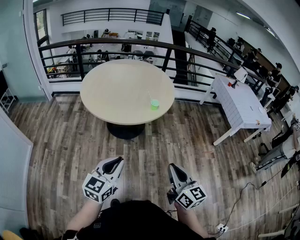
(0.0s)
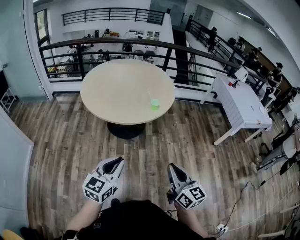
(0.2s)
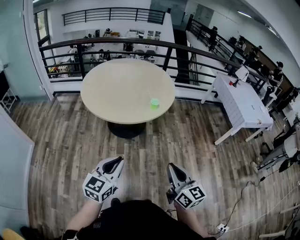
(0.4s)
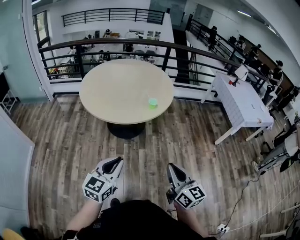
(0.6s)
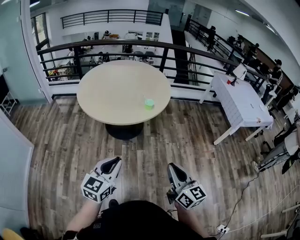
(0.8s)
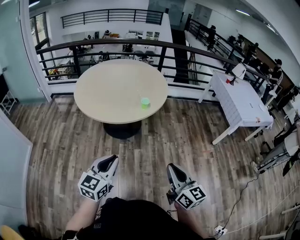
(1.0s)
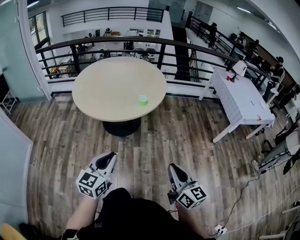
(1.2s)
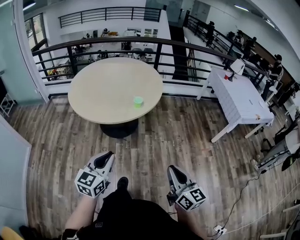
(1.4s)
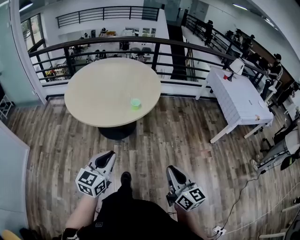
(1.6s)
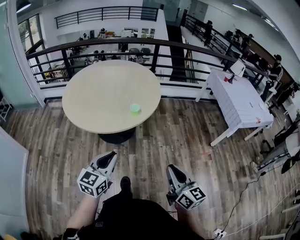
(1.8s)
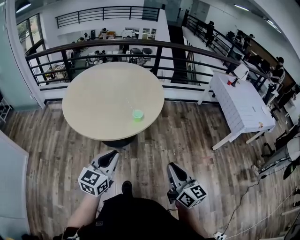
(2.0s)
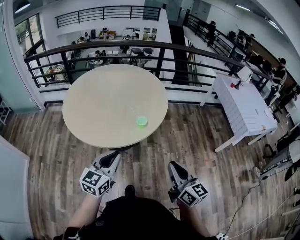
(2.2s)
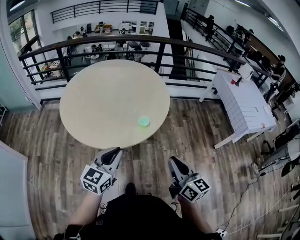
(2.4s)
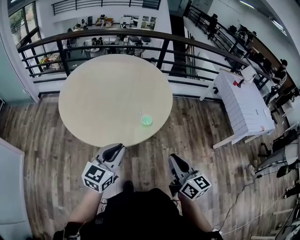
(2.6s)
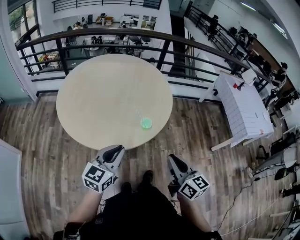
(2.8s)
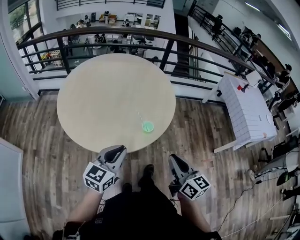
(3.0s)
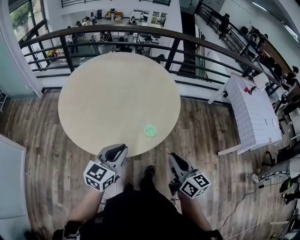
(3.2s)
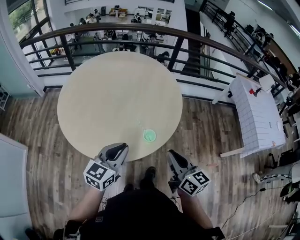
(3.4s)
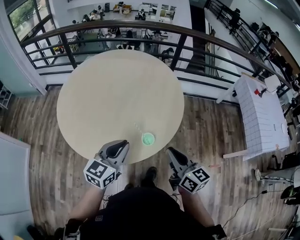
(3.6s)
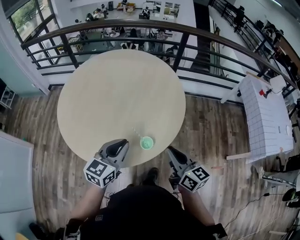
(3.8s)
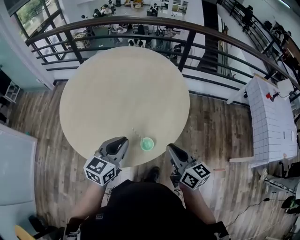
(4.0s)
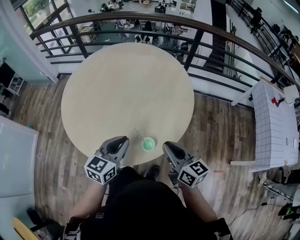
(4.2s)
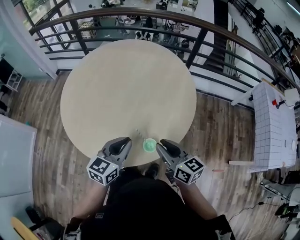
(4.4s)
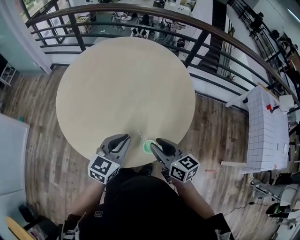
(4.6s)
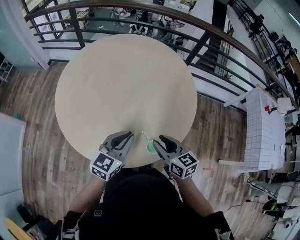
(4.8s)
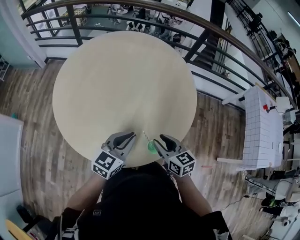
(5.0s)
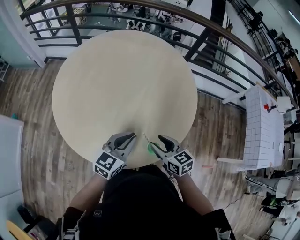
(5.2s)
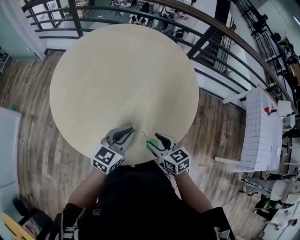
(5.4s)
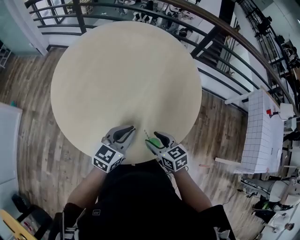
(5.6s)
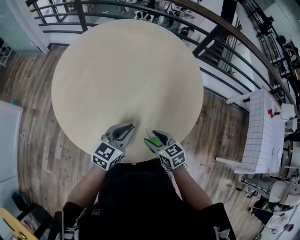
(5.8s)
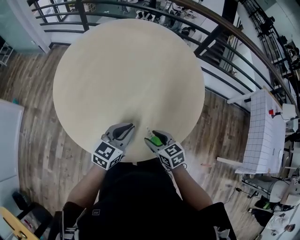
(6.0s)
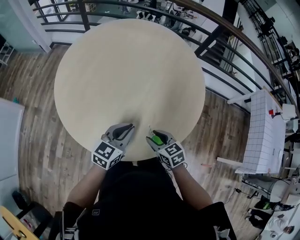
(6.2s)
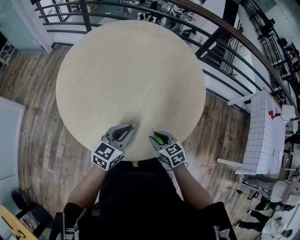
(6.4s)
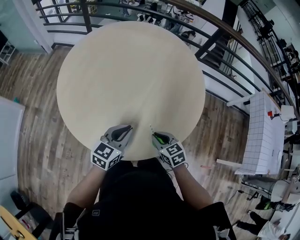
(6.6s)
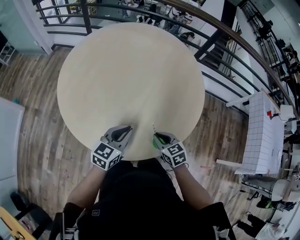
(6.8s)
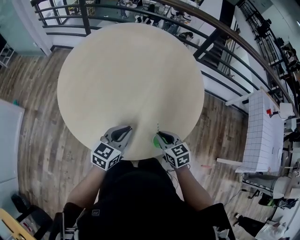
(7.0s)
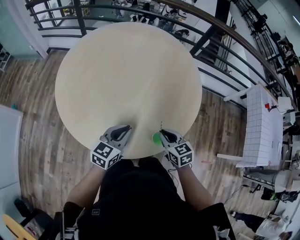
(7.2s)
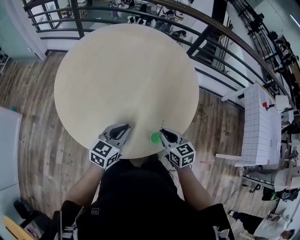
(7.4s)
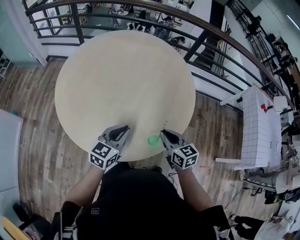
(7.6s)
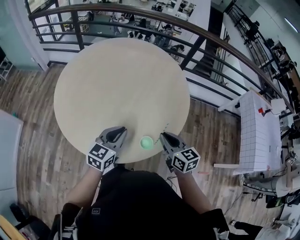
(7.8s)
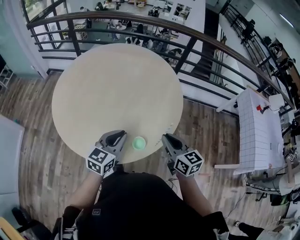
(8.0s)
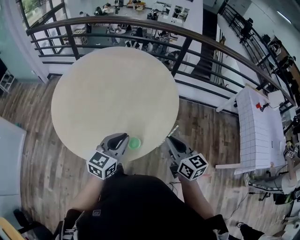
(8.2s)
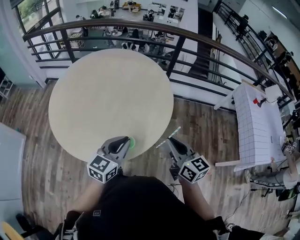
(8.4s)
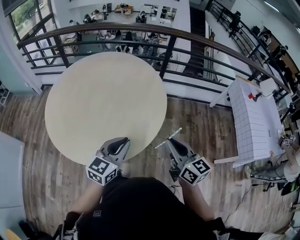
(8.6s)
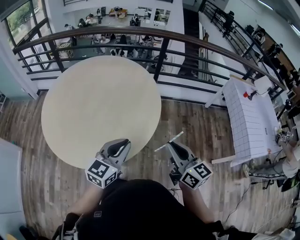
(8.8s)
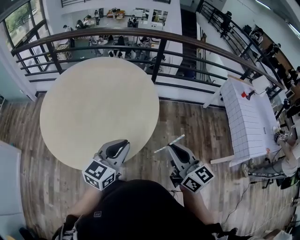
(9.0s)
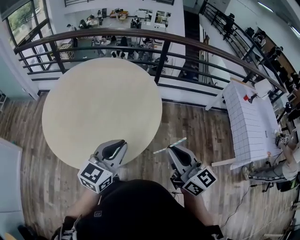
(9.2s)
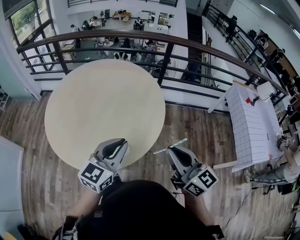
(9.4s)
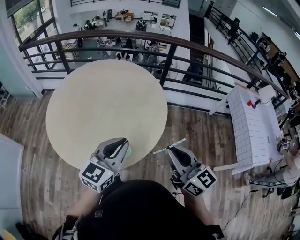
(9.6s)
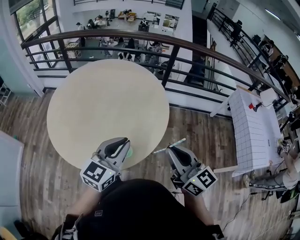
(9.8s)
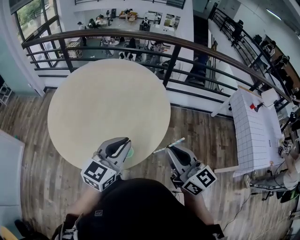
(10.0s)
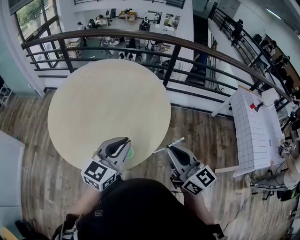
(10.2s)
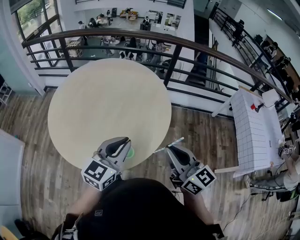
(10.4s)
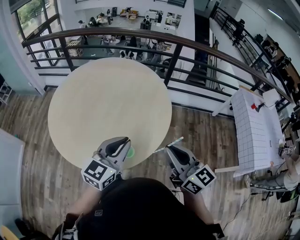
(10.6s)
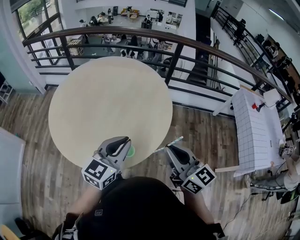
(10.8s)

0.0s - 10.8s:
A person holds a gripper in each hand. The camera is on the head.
0.0s - 1.6s: The left gripper travels to the right and forward by approximately 15 cm; the right gripper travels to the right by some 15 cm.
1.6s - 3.0s: The two grippers go some 25 cm forward.
3.0s - 4.6s: Both grippers travel together forward, about 20 cm. The right gripper rotates roughly 30 degrees, and opens.
4.6s - 6.2s: The right gripper goes about 15 cm downward, and changes its angle by about 30 degrees; the left gripper is displaced downward by some 10 cm.
6.2s - 7.8s: The right gripper shifts approximately 15 cm upward and to the right, rotates about 30 degrees, and closes; the left gripper shifts by roughly 5 cm.
7.8s - 9.2s: The right gripper goes about 25 cm upward, to the right and backward, and rotates some 20 degrees; the left gripper heads to the right and upward, covering about 20 cm.
9.2s - 10.8s: The right gripper moves approximately 5 cm.

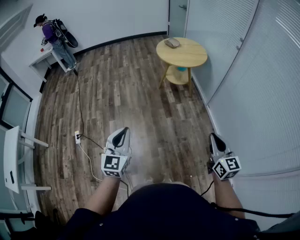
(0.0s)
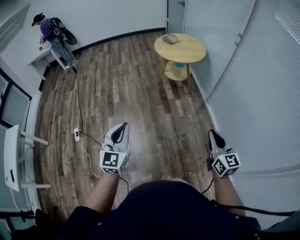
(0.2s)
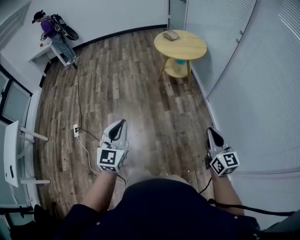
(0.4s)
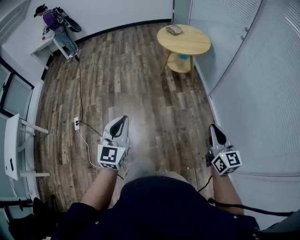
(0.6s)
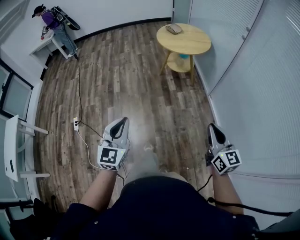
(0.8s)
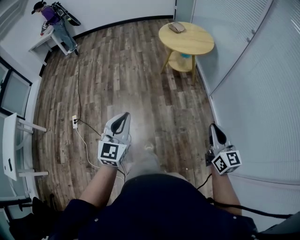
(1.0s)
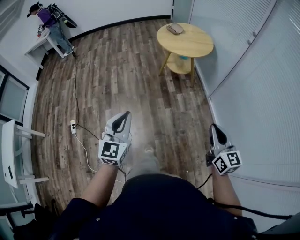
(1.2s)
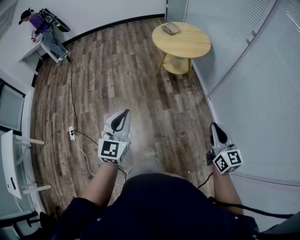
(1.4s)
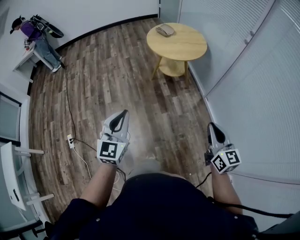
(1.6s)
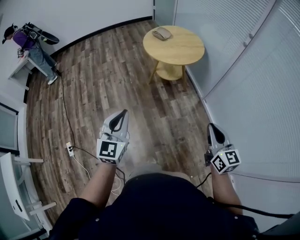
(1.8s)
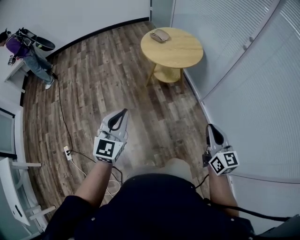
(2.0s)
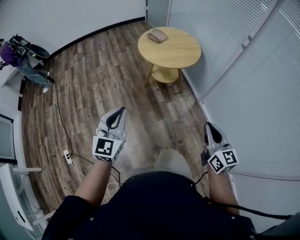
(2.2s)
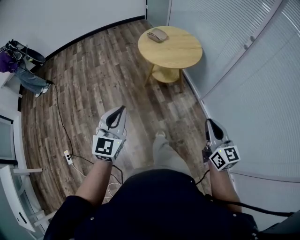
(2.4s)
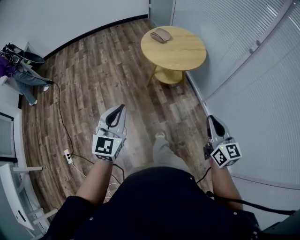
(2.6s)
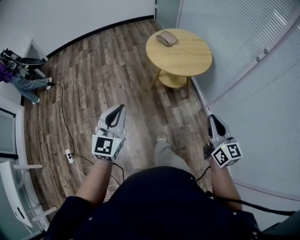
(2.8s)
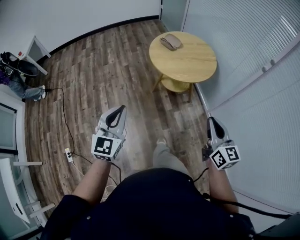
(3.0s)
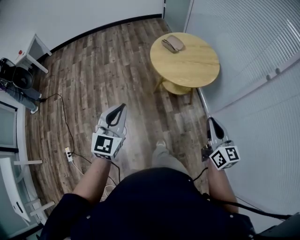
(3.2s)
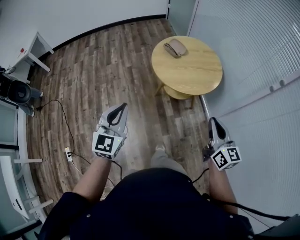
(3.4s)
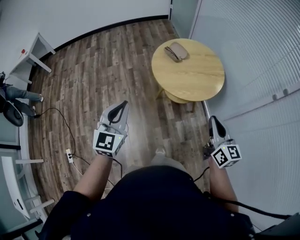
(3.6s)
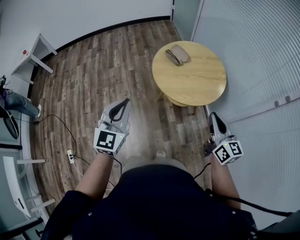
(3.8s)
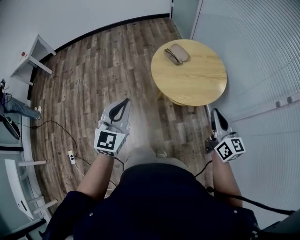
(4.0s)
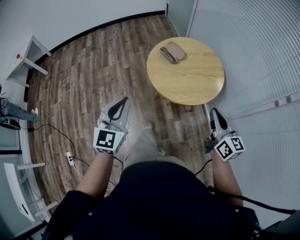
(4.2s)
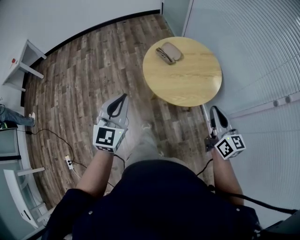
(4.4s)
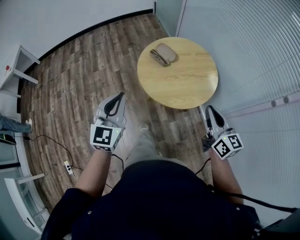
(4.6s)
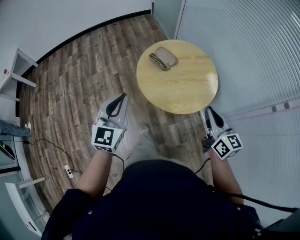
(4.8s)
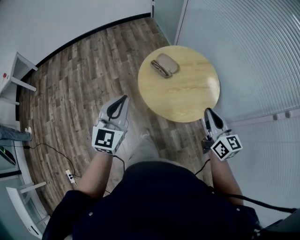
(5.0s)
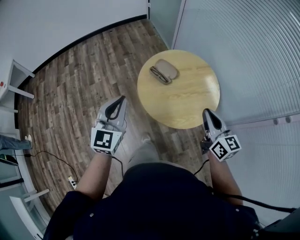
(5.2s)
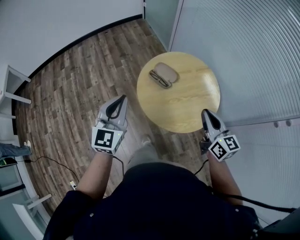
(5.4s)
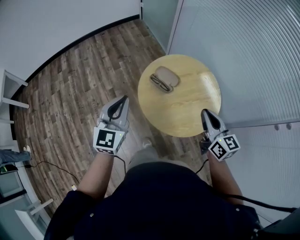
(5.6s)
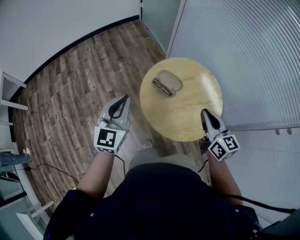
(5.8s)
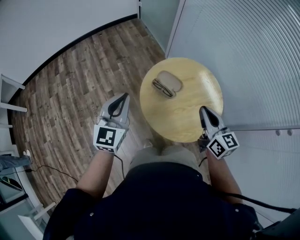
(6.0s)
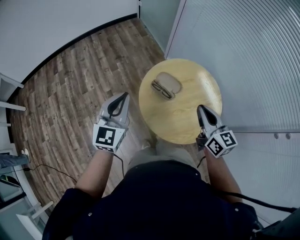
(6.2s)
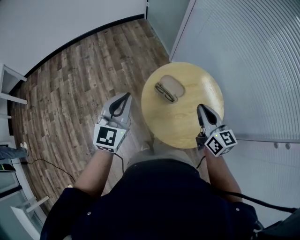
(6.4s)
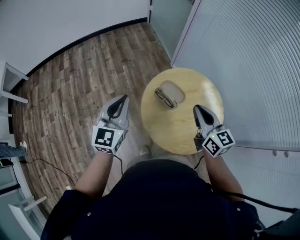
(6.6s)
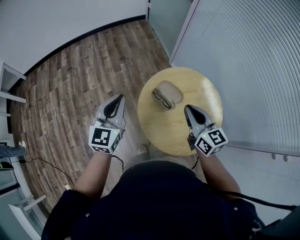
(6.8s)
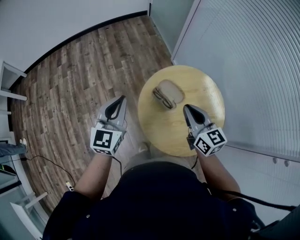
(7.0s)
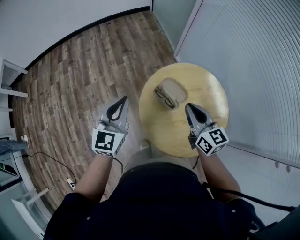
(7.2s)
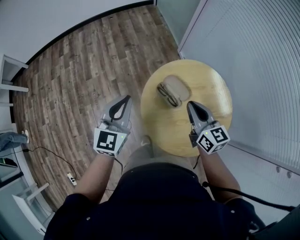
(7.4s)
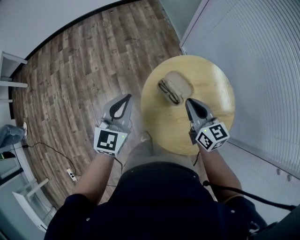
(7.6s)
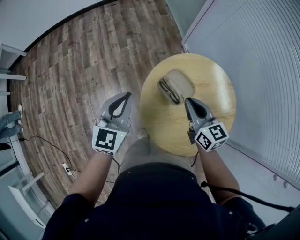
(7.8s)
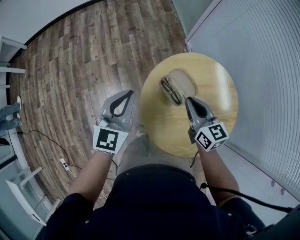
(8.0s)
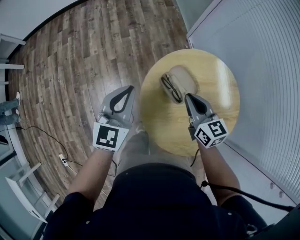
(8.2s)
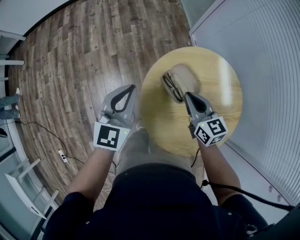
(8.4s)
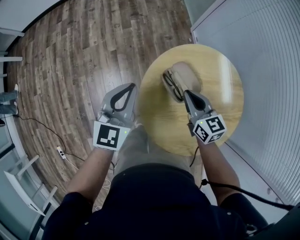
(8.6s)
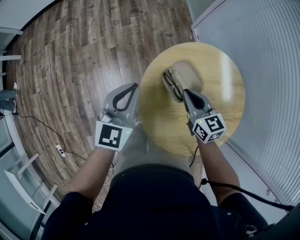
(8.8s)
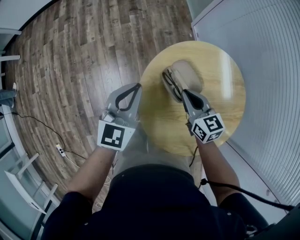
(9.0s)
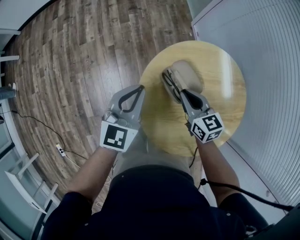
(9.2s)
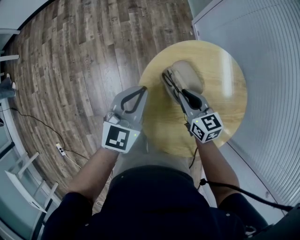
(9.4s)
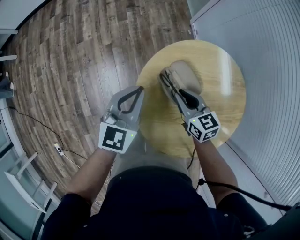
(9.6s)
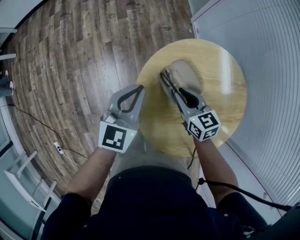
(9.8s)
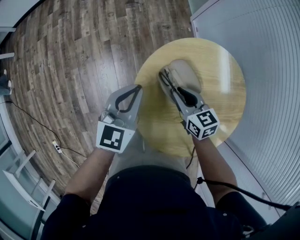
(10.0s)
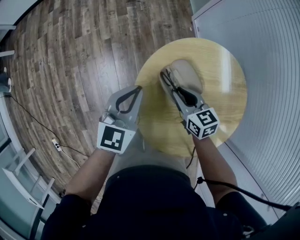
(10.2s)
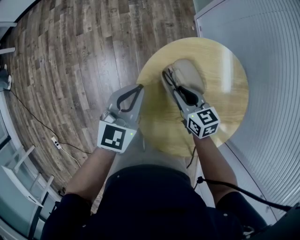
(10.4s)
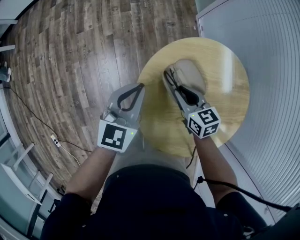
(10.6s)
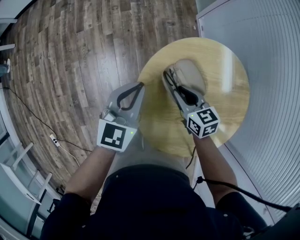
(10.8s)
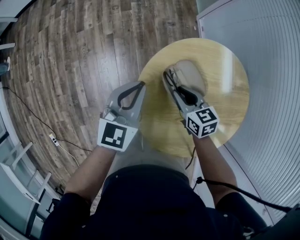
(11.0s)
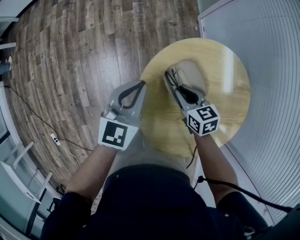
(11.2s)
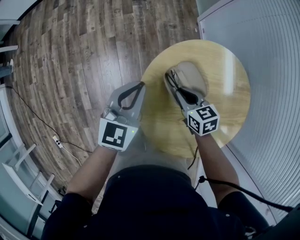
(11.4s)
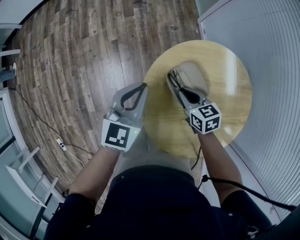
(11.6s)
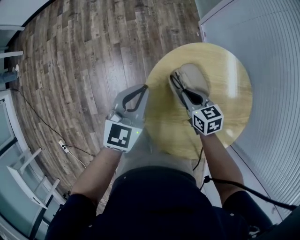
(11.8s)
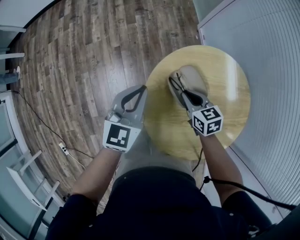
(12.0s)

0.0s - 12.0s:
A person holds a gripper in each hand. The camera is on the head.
0.0s - 1.6s: Both grippers move forward, approximately 25 cm.
1.6s - 3.0s: The grippers both shift forward by roughly 25 cm.
3.0s - 4.4s: The grippers both shift forward by some 30 cm.
4.4s - 6.0s: The left gripper goes some 30 cm forward, while the right gripper shifts roughly 30 cm forward and to the left.
6.0s - 7.6s: The left gripper heads forward and downward, covering roughly 10 cm, while the right gripper heads forward and downward, covering approximately 20 cm.
7.6s - 9.0s: The left gripper moves downward, roughly 10 cm. The right gripper heads downward and forward, covering roughly 15 cm.
9.0s - 10.4s: The right gripper travels downward by approximately 5 cm.
10.4s - 12.0s: The grippers move only a little.

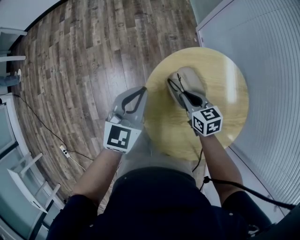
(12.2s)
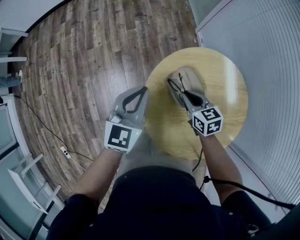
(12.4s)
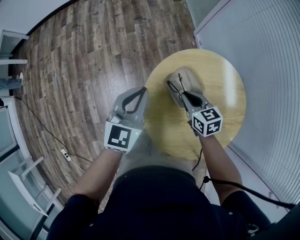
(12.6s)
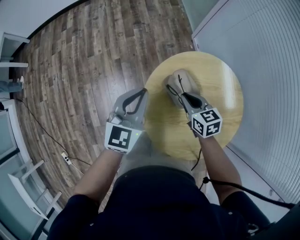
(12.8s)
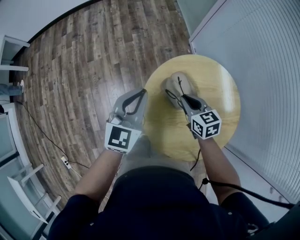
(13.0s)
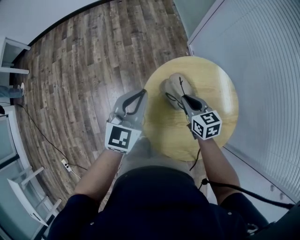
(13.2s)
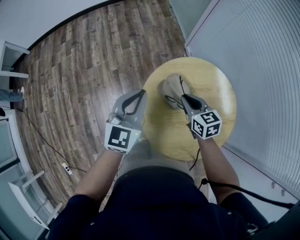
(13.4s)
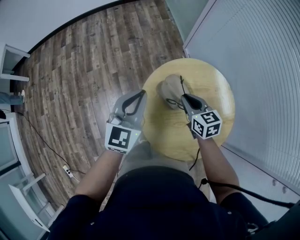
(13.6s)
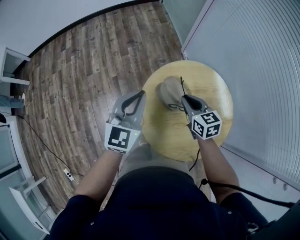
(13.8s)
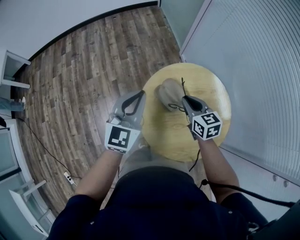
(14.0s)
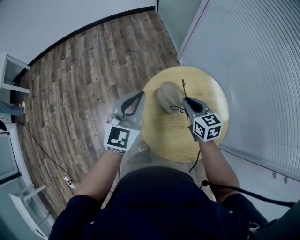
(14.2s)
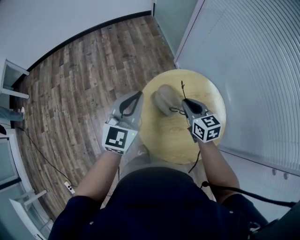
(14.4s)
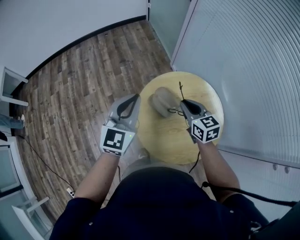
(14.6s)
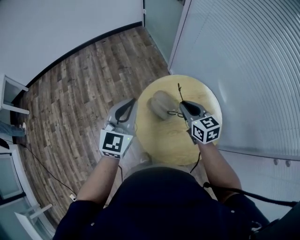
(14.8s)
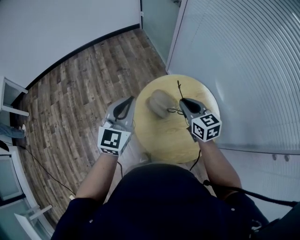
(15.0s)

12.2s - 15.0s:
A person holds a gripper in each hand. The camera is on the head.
12.2s - 13.6s: Both grippers travel together upward, approximately 10 cm.
13.6s - 15.0s: The two grippers go some 10 cm upward.
